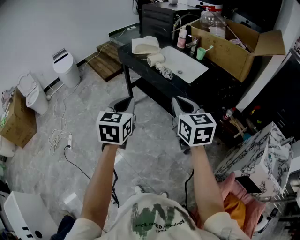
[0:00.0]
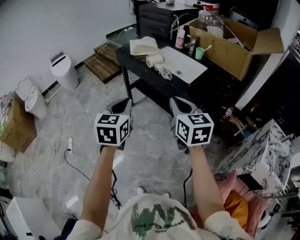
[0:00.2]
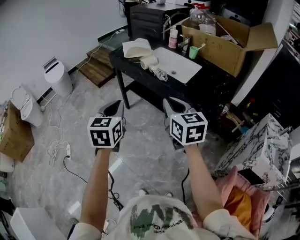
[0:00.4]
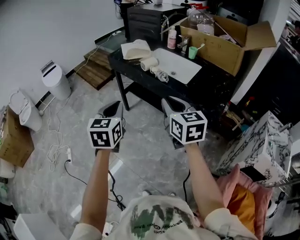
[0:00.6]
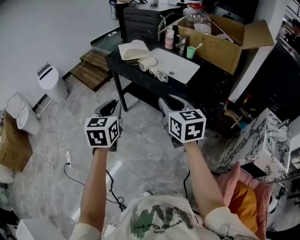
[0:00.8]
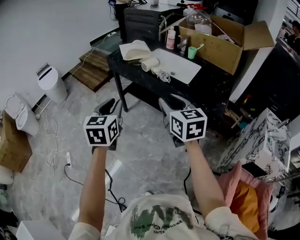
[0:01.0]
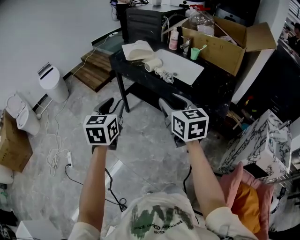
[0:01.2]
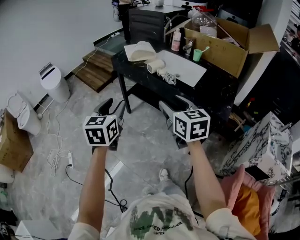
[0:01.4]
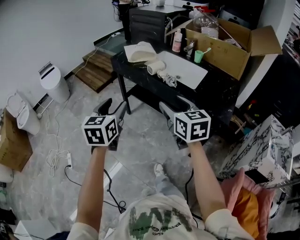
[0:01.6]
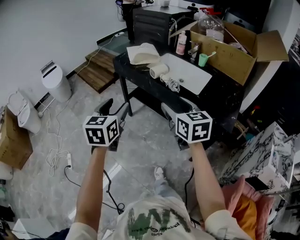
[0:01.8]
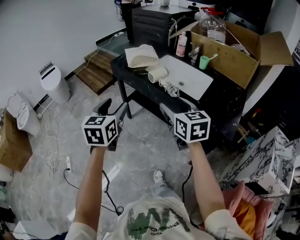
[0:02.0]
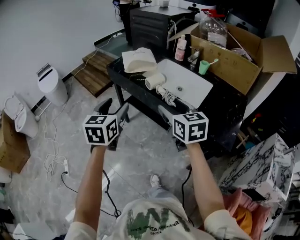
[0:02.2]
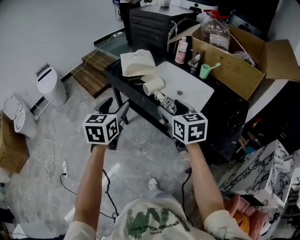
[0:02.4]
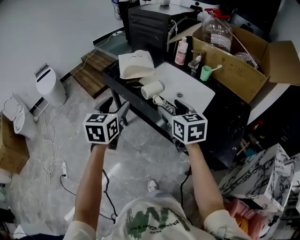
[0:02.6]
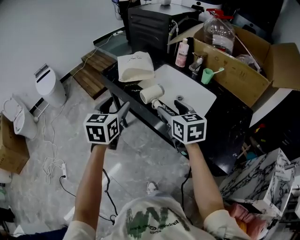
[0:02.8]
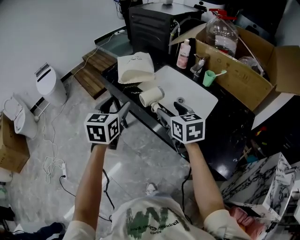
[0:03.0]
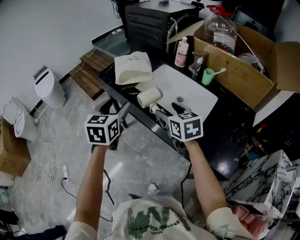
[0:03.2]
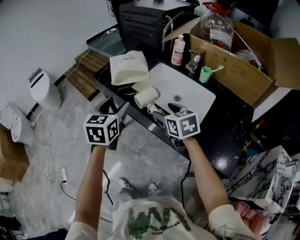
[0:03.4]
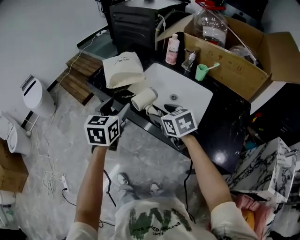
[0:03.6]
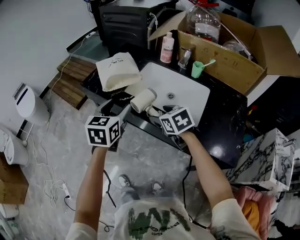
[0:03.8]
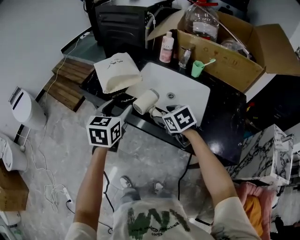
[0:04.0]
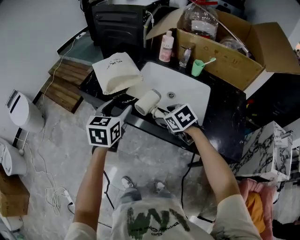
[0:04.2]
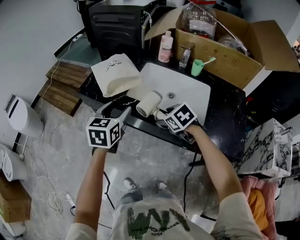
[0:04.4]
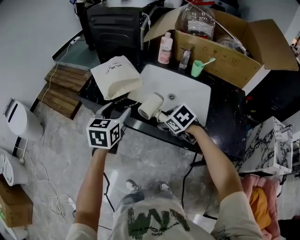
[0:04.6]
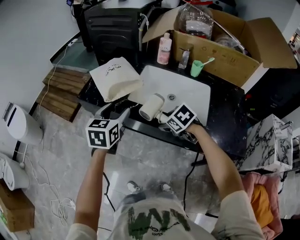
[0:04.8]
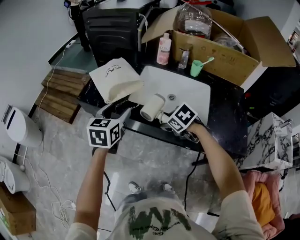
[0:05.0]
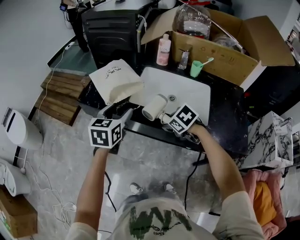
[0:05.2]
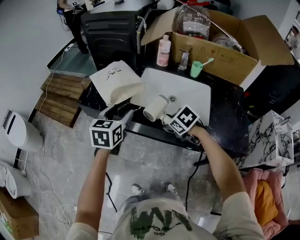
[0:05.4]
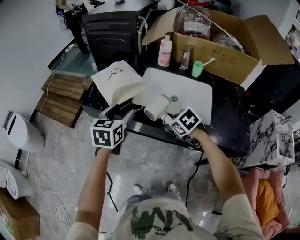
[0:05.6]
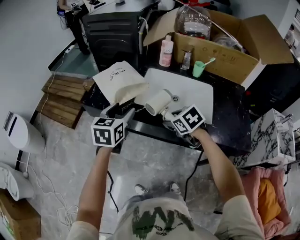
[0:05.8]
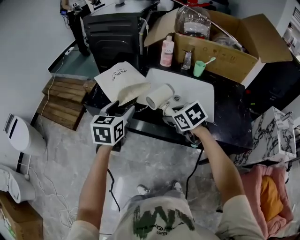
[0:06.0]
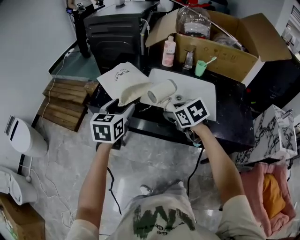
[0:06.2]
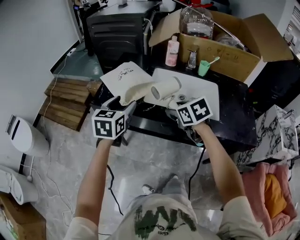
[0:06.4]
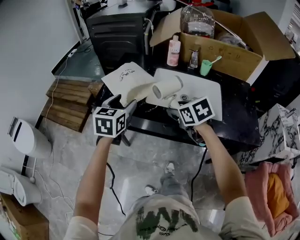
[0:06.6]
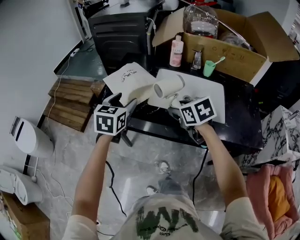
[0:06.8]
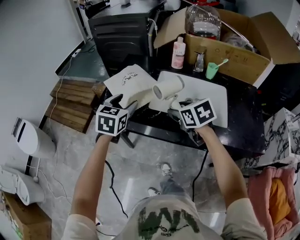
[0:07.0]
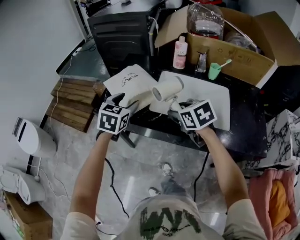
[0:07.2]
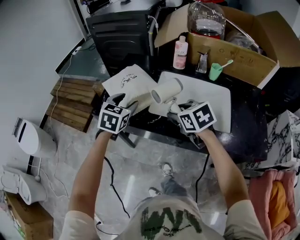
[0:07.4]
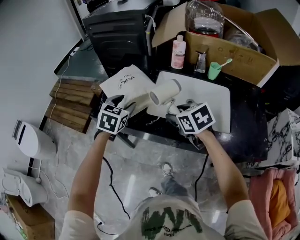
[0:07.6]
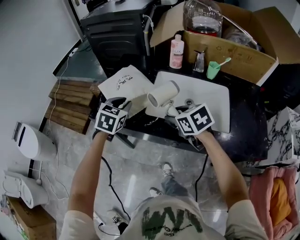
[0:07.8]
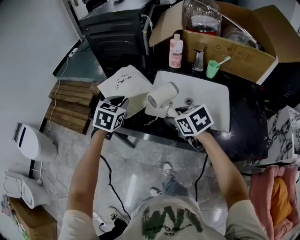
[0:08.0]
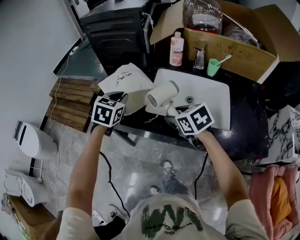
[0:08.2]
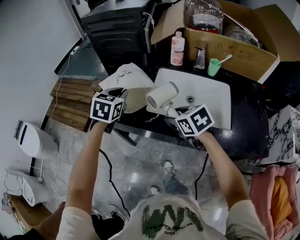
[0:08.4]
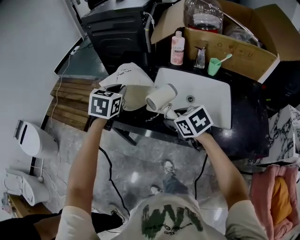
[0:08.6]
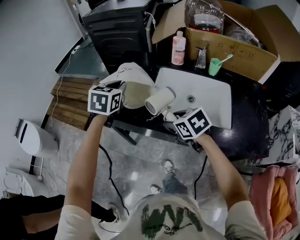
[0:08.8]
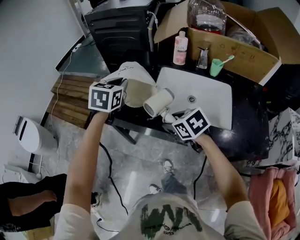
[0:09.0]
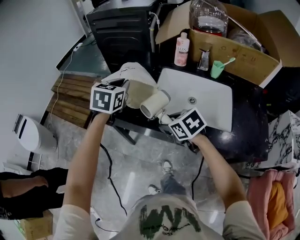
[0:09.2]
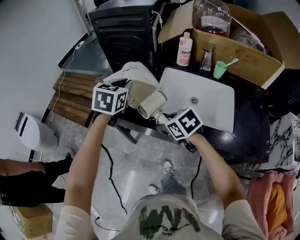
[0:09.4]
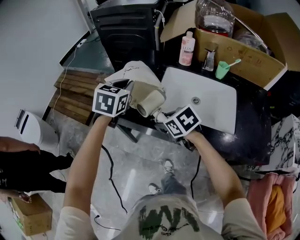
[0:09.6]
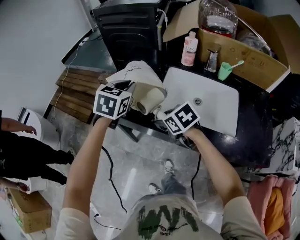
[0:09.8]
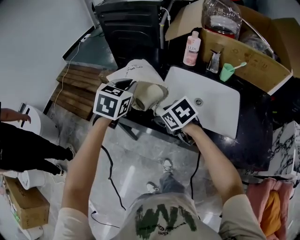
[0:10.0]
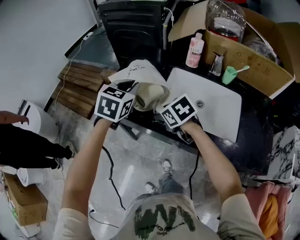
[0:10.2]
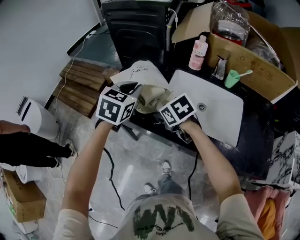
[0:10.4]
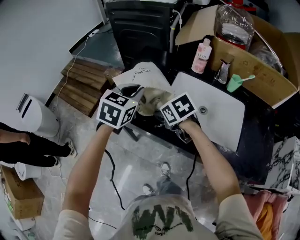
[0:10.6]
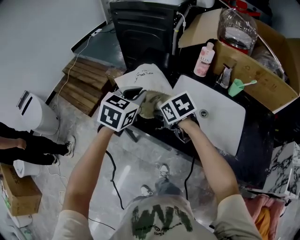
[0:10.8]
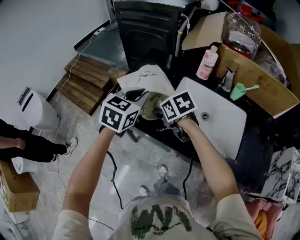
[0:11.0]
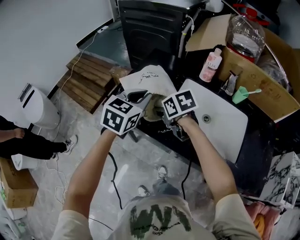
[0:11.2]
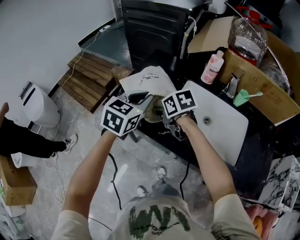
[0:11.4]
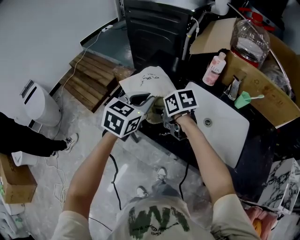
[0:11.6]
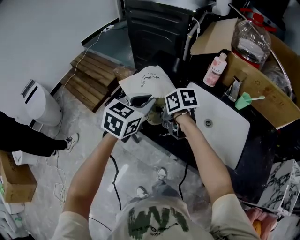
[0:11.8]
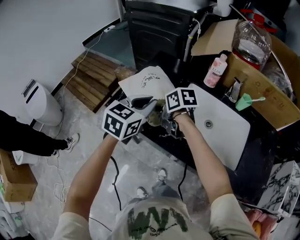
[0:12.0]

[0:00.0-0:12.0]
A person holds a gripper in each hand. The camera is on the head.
0.0 to 1.6 s: The two grippers go approximately 15 cm to the left and forward. The left gripper opens up. Meanwhile the right gripper opens its fingers.
1.6 to 3.0 s: The grippers both shift forward by about 25 cm.
3.0 to 4.4 s: The right gripper heads downward and forward, covering approximately 15 cm, and tips its fingers downward by roughly 30 degrees. The left gripper is displaced forward and downward by about 10 cm, and swivels some 20 degrees.
4.4 to 6.0 s: The left gripper ends up approximately 5 cm from where it was, while the right gripper shifts by roughly 5 cm.
6.0 to 7.6 s: The left gripper moves forward, roughly 10 cm, and swivels roughly 20 degrees. Meanwhile the right gripper heads forward, covering roughly 5 cm.
7.6 to 9.0 s: The right gripper moves roughly 5 cm. The left gripper goes approximately 5 cm upward, and closes.
9.0 to 10.4 s: The right gripper moves forward, roughly 10 cm.
10.4 to 12.0 s: The right gripper is displaced forward by about 10 cm, and rotates some 30 degrees.

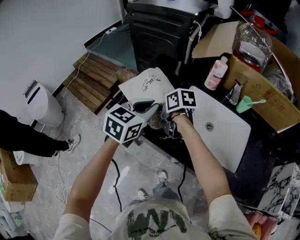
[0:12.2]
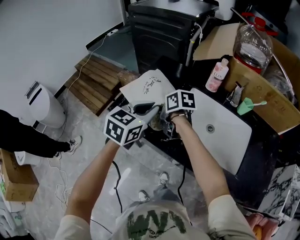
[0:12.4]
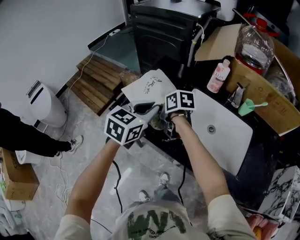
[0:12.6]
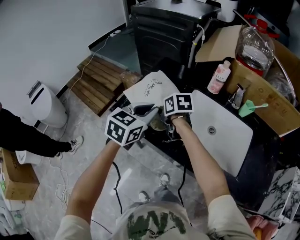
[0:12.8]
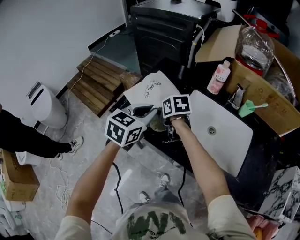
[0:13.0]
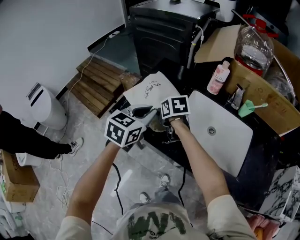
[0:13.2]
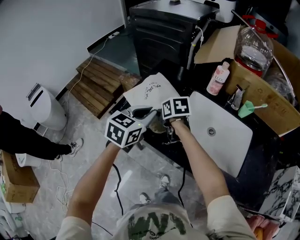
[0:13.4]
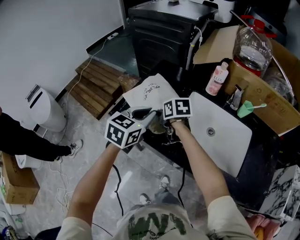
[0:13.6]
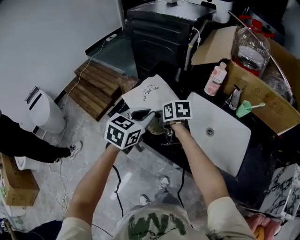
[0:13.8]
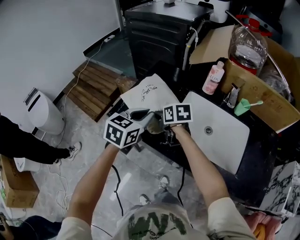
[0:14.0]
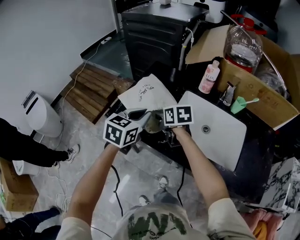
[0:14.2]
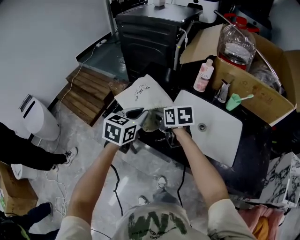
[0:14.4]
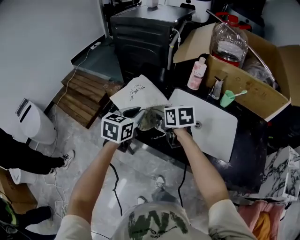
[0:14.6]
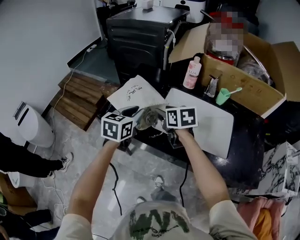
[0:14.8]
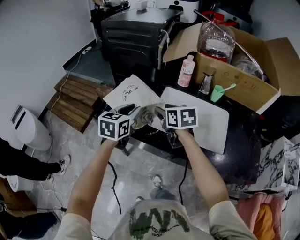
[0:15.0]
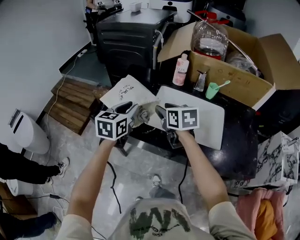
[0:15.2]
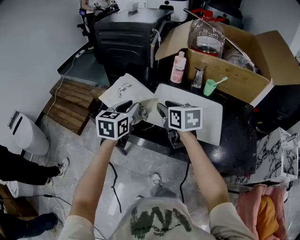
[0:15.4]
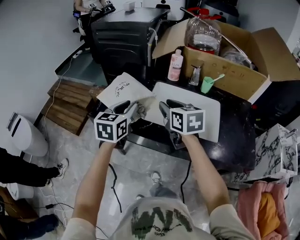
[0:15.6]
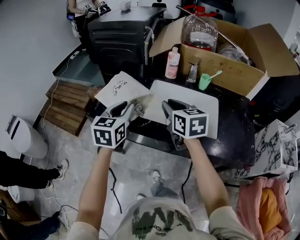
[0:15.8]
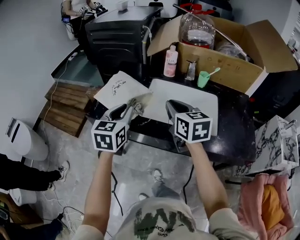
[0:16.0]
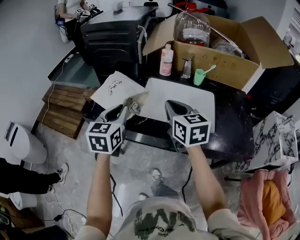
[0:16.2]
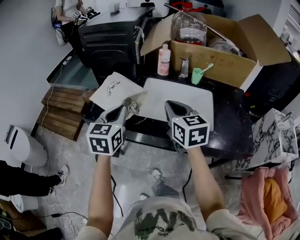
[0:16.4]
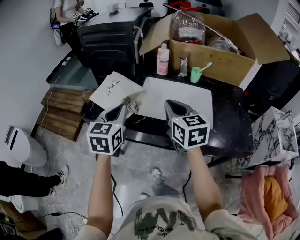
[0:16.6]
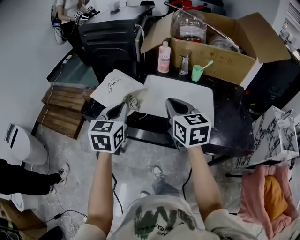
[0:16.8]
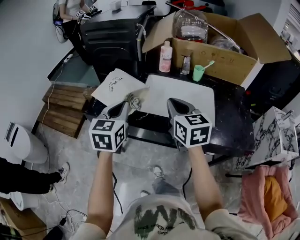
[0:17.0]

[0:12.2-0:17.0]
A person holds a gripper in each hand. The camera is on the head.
12.2 to 13.8 s: The grippers stay close to where they were, moving slightly.
13.8 to 15.4 s: The right gripper heads to the right, upward and backward, covering approximately 20 cm, rotates approximately 30 degrees, and closes. The left gripper shifts by approximately 5 cm.
15.4 to 17.0 s: The right gripper heads backward and to the right, covering approximately 10 cm, and closes. The left gripper heads backward, covering some 5 cm, and closes up.

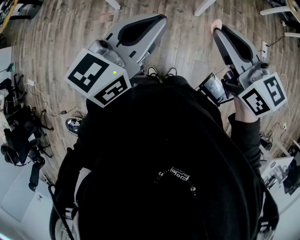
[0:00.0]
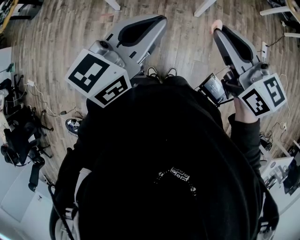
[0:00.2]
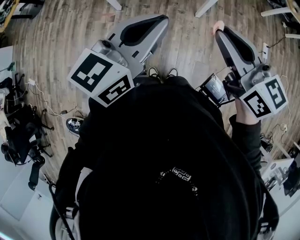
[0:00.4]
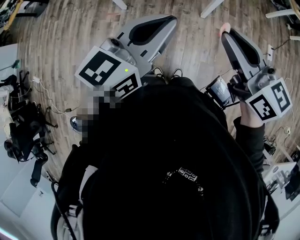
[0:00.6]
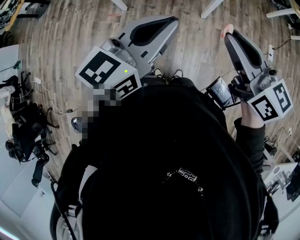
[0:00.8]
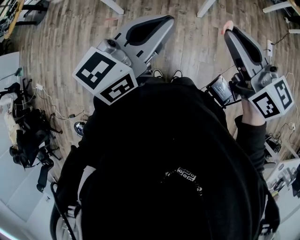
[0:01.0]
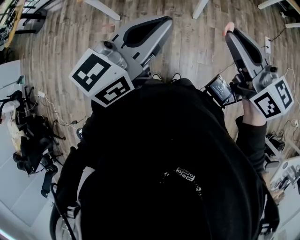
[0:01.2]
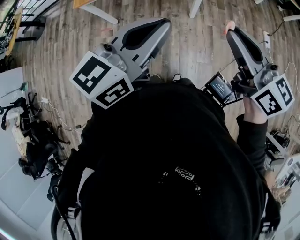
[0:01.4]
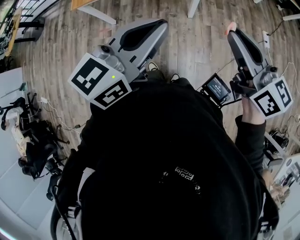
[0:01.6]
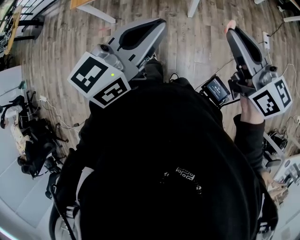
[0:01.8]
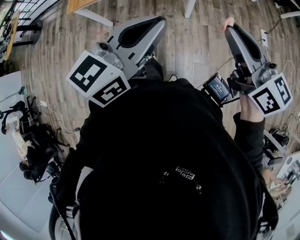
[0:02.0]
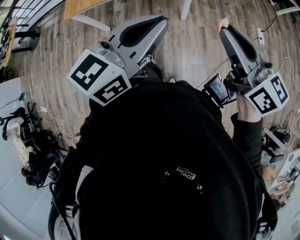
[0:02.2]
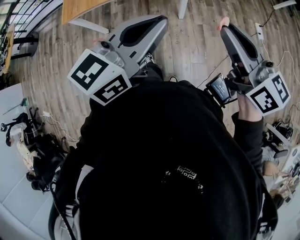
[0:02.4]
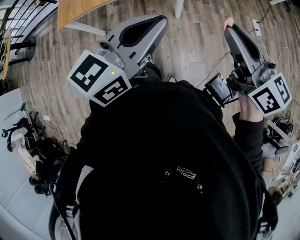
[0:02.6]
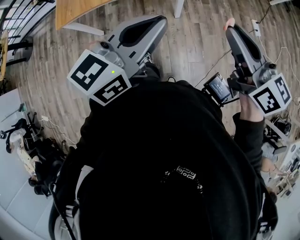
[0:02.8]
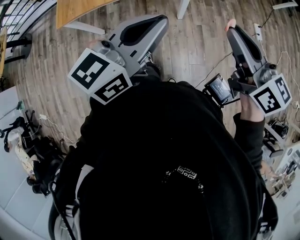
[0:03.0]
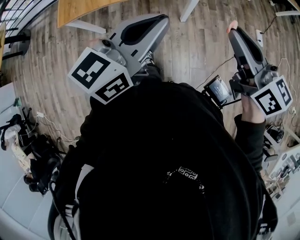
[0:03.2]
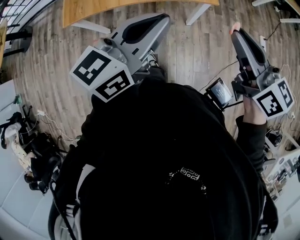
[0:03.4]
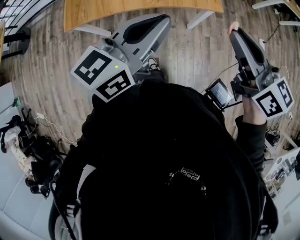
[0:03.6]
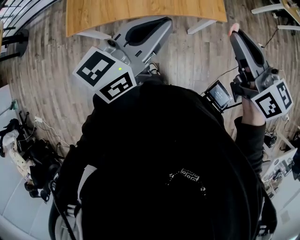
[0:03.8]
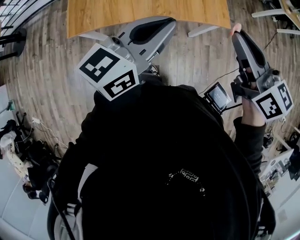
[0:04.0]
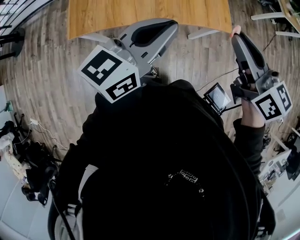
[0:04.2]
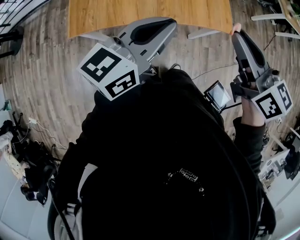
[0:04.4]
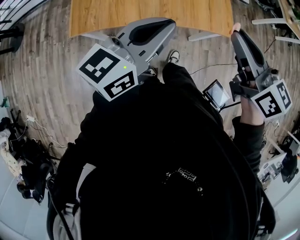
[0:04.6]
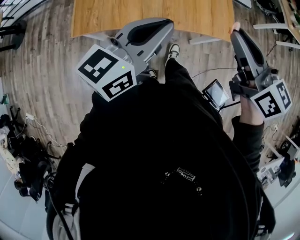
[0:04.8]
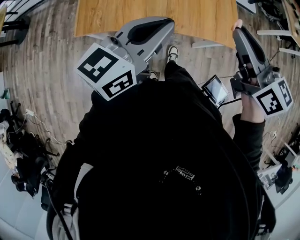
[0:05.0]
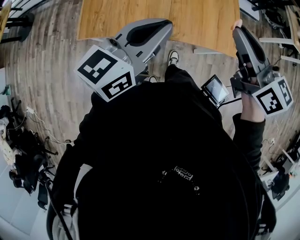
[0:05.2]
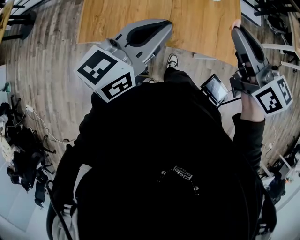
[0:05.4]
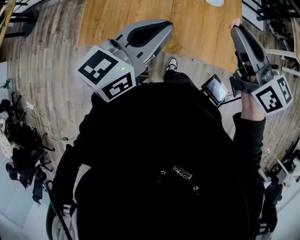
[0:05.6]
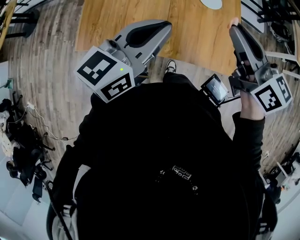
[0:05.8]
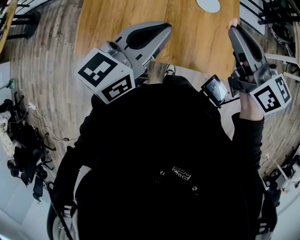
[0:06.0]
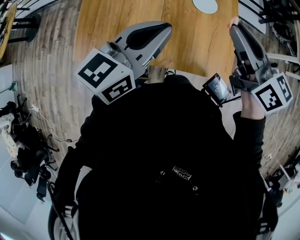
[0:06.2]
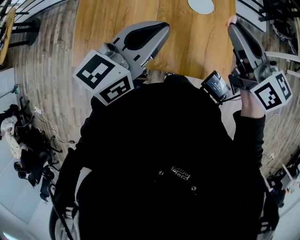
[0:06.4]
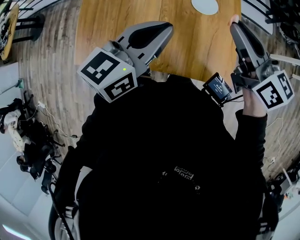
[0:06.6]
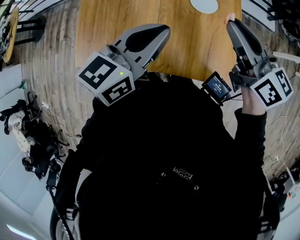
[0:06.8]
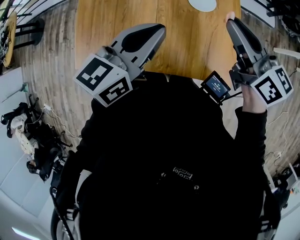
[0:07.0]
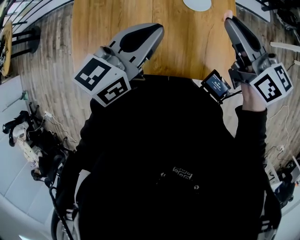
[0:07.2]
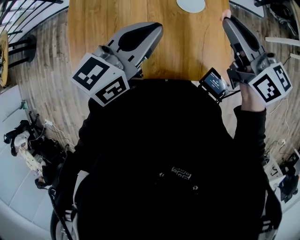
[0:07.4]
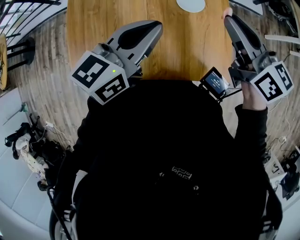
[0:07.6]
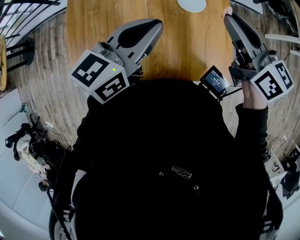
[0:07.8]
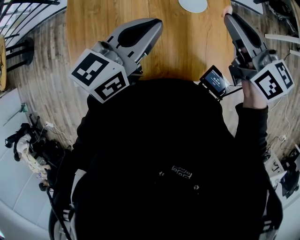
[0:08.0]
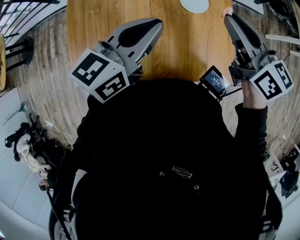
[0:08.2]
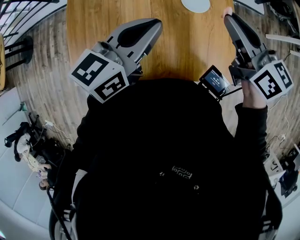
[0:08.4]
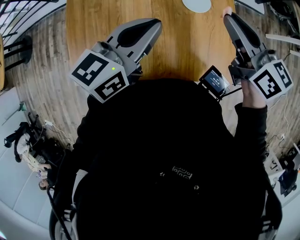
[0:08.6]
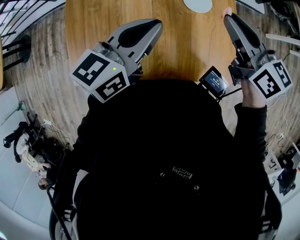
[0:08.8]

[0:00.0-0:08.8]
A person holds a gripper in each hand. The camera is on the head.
0.0 to 1.4 s: The two grippers go roughly 10 cm to the right.
1.4 to 3.0 s: Both grippers travel together forward, some 10 cm.
3.0 to 4.4 s: The two grippers go about 25 cm to the left and forward.
4.4 to 5.8 s: The two grippers go about 15 cm forward.
5.8 to 7.4 s: The left gripper travels forward by about 15 cm. Meanwhile the right gripper heads forward and to the right, covering some 15 cm.
7.4 to 8.8 s: Both grippers stay about where they are.
